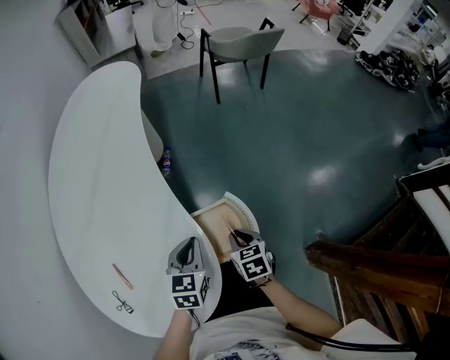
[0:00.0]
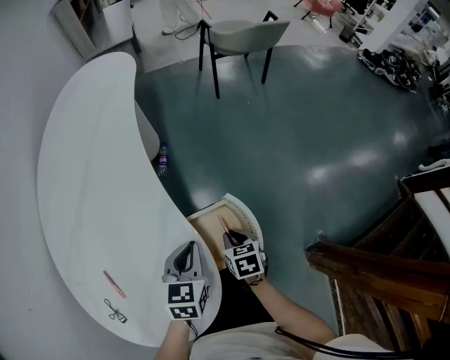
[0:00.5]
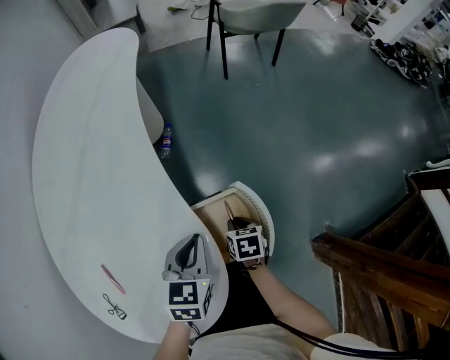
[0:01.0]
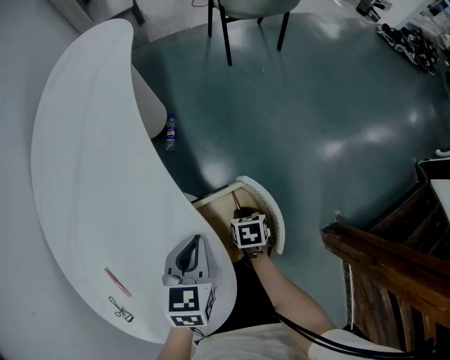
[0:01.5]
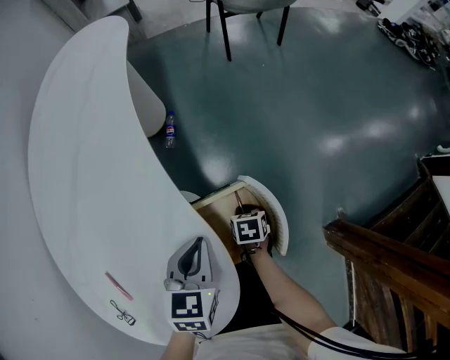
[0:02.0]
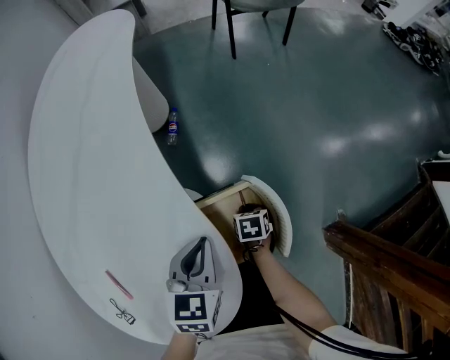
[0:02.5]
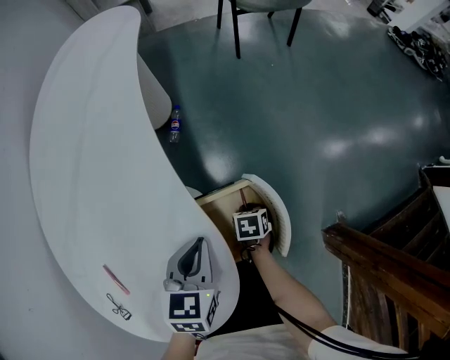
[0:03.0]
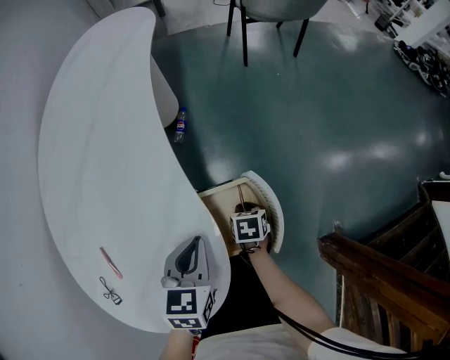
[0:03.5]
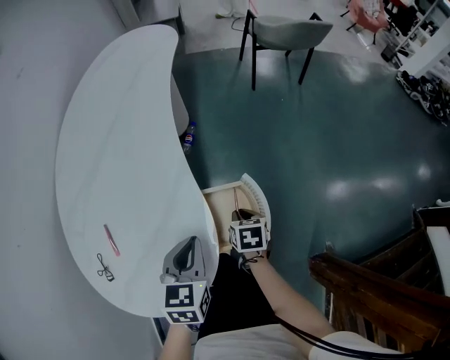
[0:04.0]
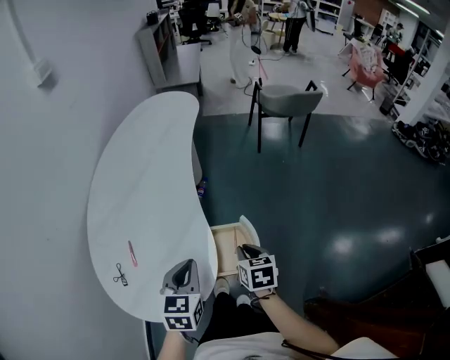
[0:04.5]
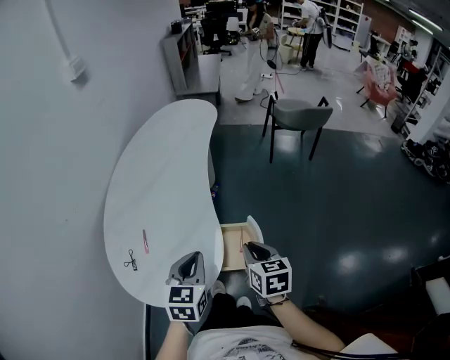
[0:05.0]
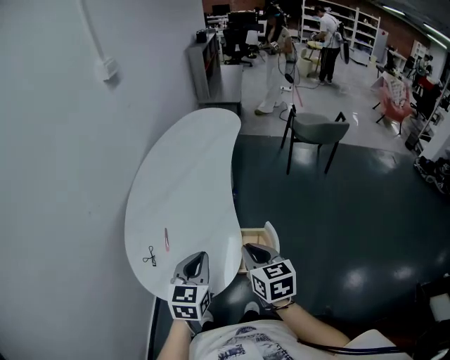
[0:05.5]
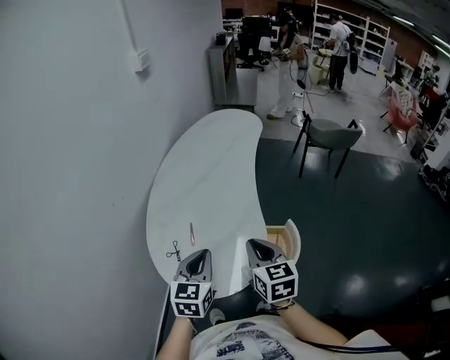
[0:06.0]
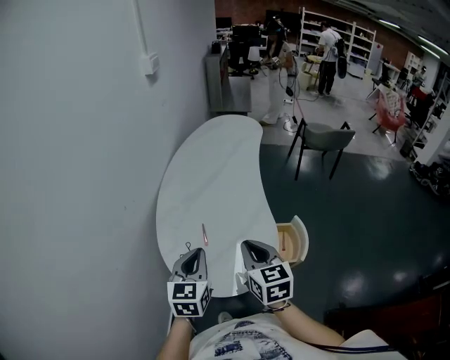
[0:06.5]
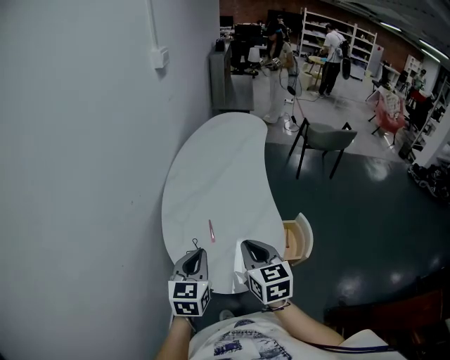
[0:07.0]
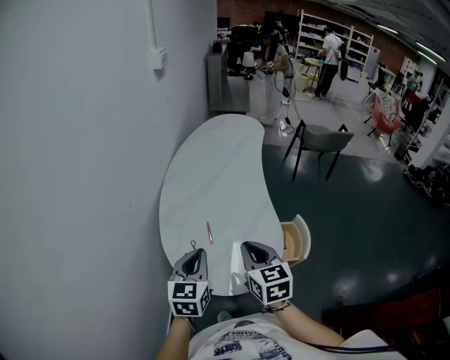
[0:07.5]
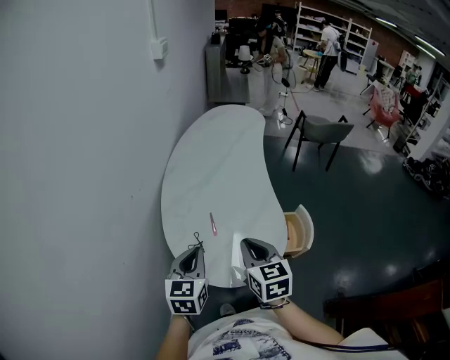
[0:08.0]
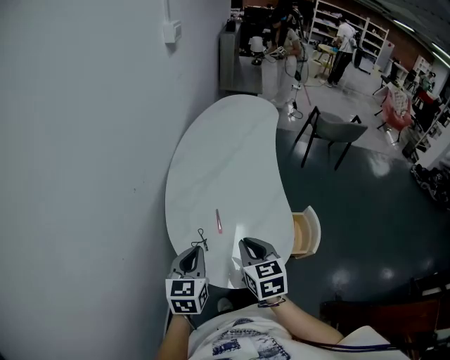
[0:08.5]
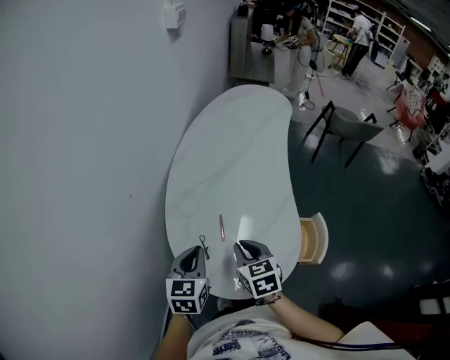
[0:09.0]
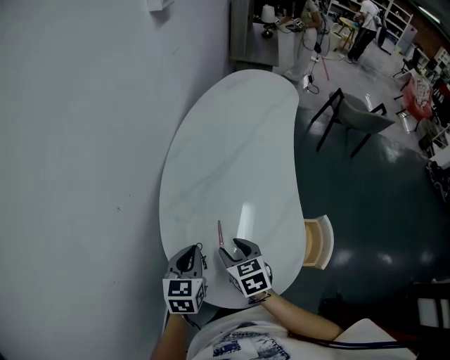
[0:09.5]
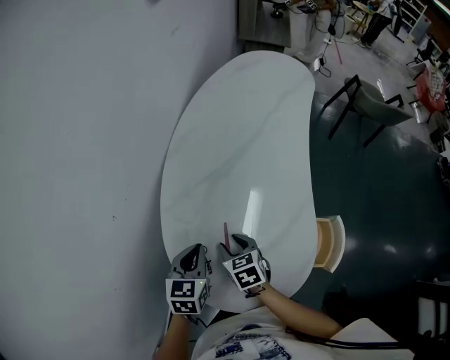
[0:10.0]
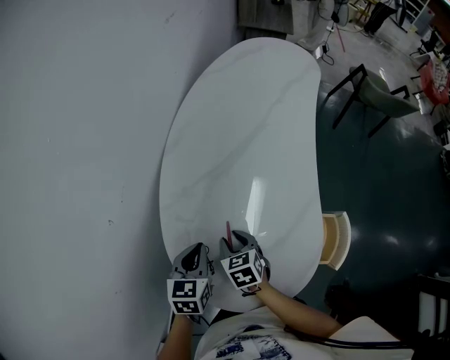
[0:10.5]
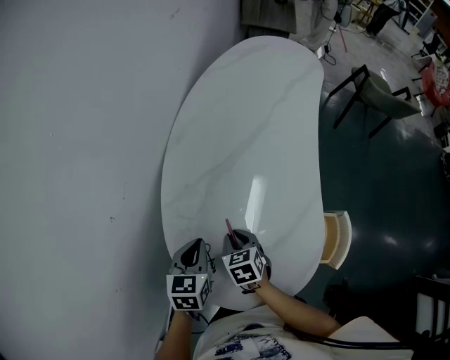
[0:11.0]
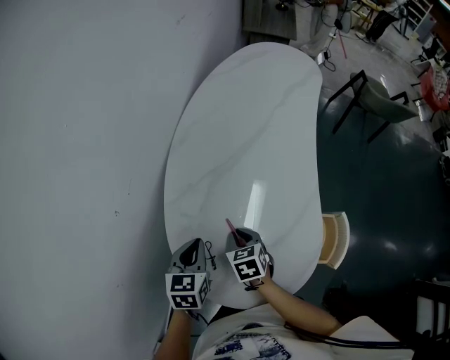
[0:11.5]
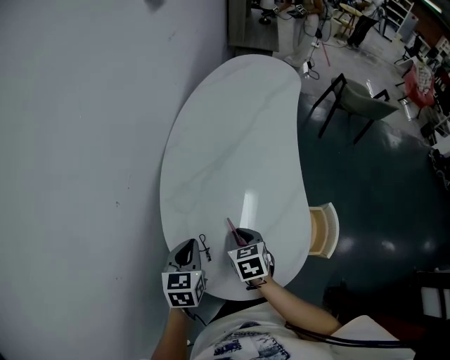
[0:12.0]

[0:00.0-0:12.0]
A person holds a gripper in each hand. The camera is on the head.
0.0 to 2.0 s: The right gripper shifts some 20 cm downward, and turns by roughly 20 degrees.
2.0 to 4.0 s: The right gripper is displaced upward by some 10 cm, while the left gripper ends up roughly 10 cm from where it was.
4.0 to 6.0 s: The right gripper is displaced upward and to the left by approximately 50 cm, and tips its fingers upward by roughly 30 degrees, while the left gripper shifts about 30 cm upward, to the left and backward.
6.0 to 8.0 s: The grippers both shift to the left by some 15 cm.
8.0 to 10.0 s: The left gripper is displaced forward and downward by about 25 cm; the right gripper heads downward and forward, covering approximately 30 cm, turns by roughly 30 degrees, and opens its fingers.
10.0 to 12.0 s: The right gripper shifts by about 5 cm, and closes.

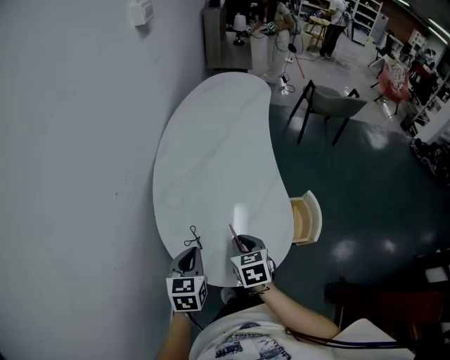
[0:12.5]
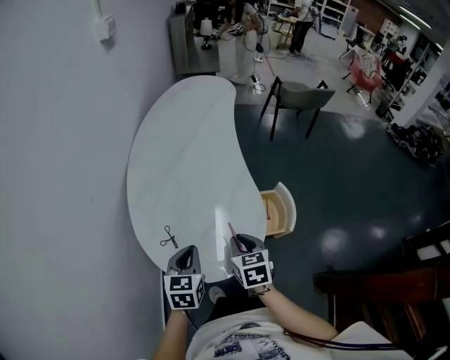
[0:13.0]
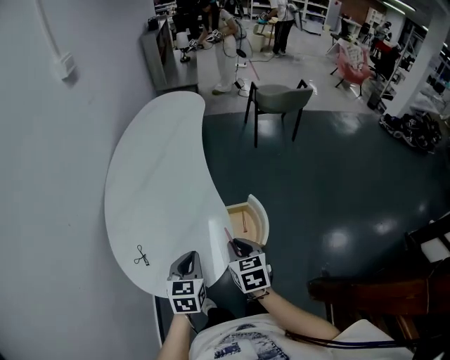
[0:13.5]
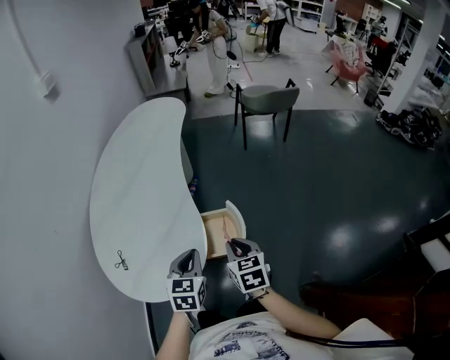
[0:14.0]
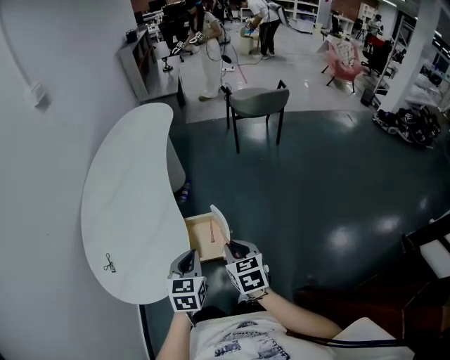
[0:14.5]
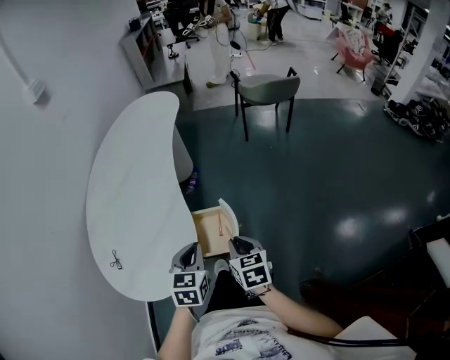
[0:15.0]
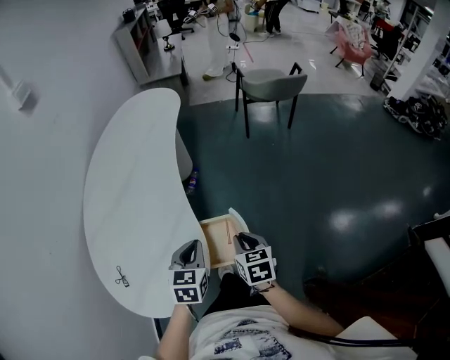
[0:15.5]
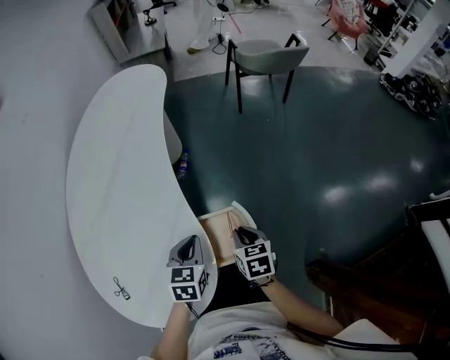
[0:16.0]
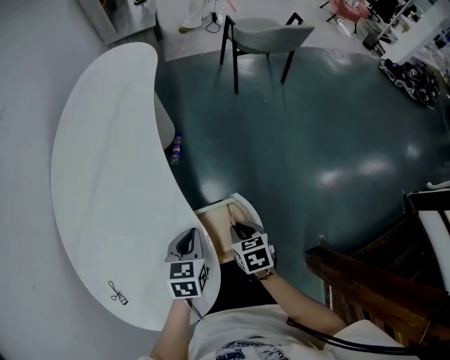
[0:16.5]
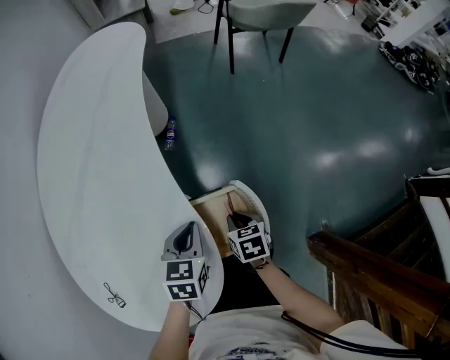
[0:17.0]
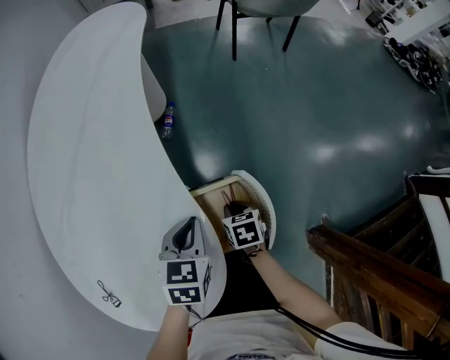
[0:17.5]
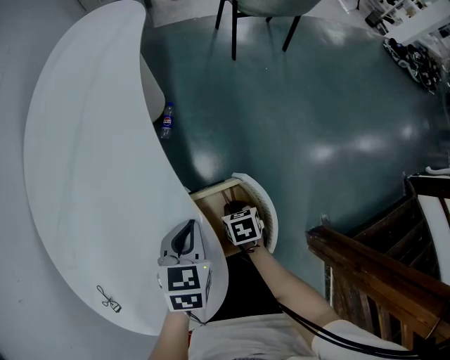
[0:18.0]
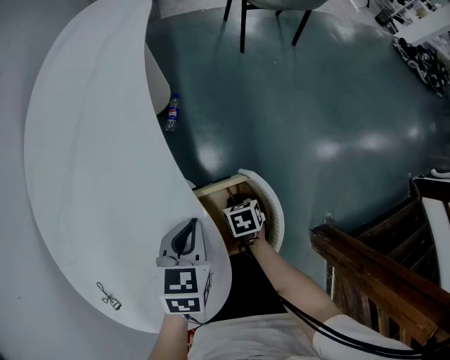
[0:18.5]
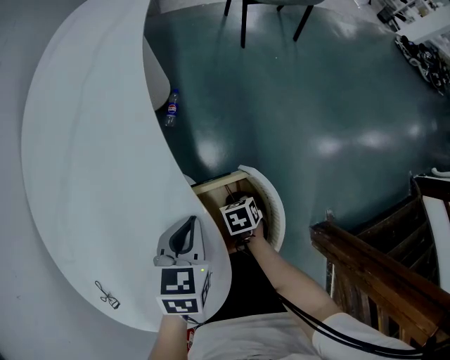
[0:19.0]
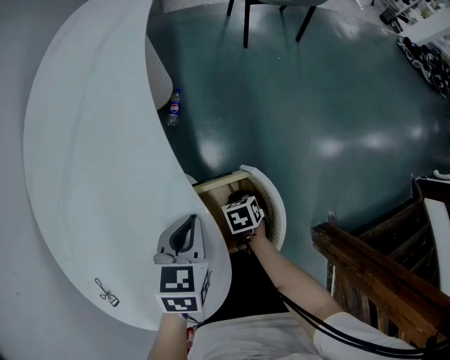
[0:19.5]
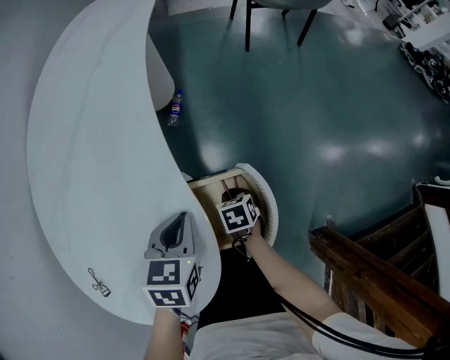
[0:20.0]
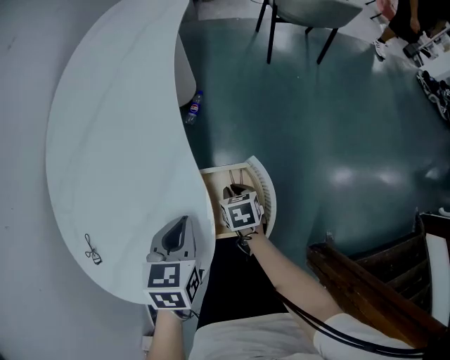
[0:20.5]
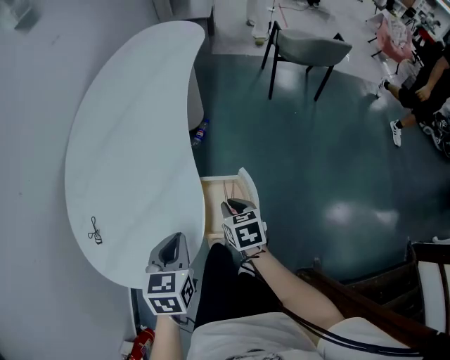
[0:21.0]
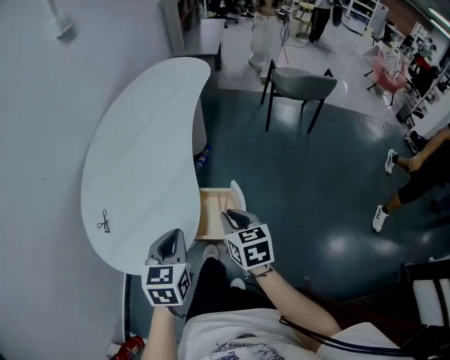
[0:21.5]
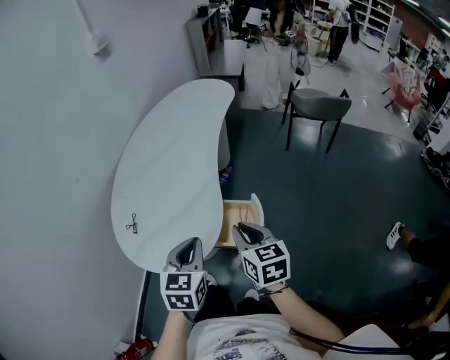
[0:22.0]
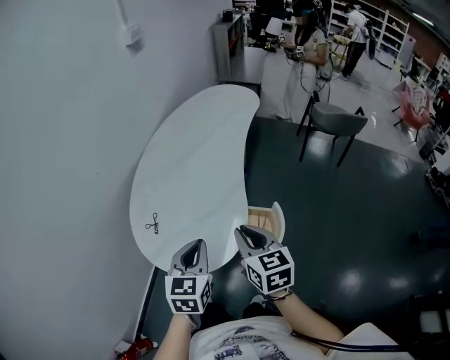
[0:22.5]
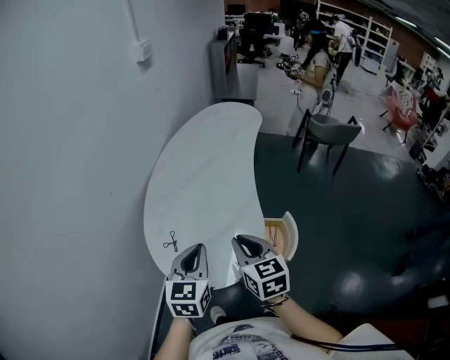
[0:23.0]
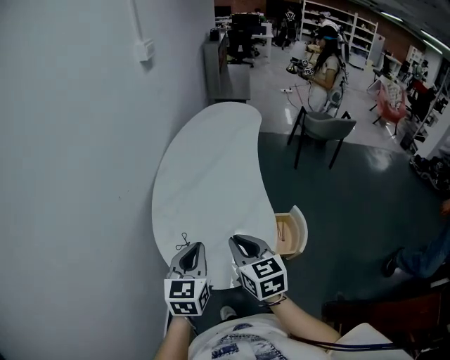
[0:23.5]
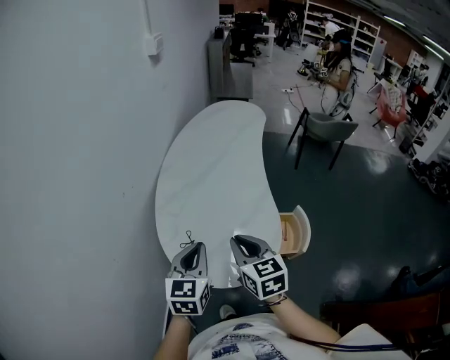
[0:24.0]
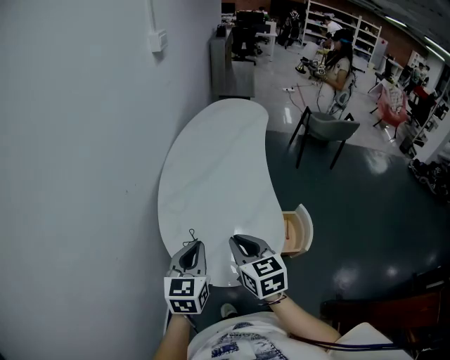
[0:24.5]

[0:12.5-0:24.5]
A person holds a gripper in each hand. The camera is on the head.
12.5 to 14.5 s: The two grippers travel together, to the right, approximately 40 cm.
14.5 to 16.5 s: The left gripper shifts roughly 25 cm forward, downward and to the left; the right gripper heads downward and forward, covering about 25 cm, and changes its angle by approximately 20 degrees.
16.5 to 18.5 s: The right gripper travels downward by about 15 cm.
18.5 to 20.5 s: The right gripper is displaced upward by about 5 cm. The left gripper is displaced backward by roughly 5 cm.
20.5 to 22.5 s: The left gripper travels upward, backward and to the left by roughly 30 cm, and changes its angle by about 30 degrees, while the right gripper travels upward by approximately 40 cm, and tilts its fingers some 30 degrees upward.
22.5 to 24.5 s: Both grippers move to the left, approximately 25 cm.

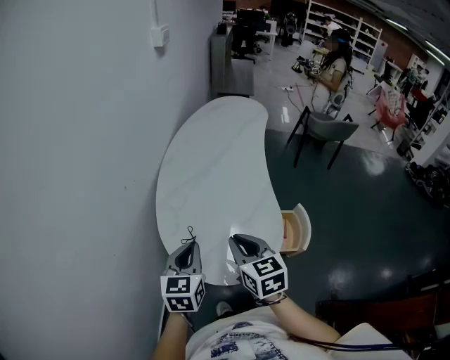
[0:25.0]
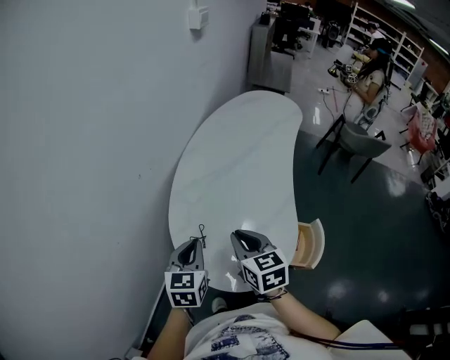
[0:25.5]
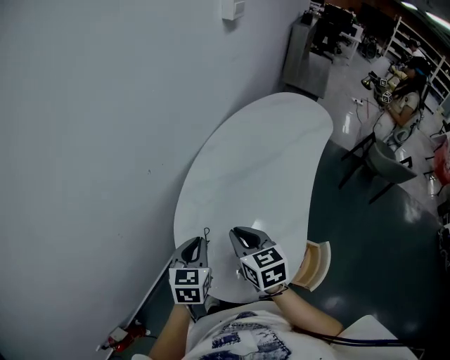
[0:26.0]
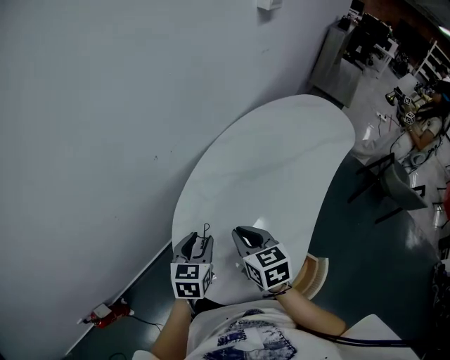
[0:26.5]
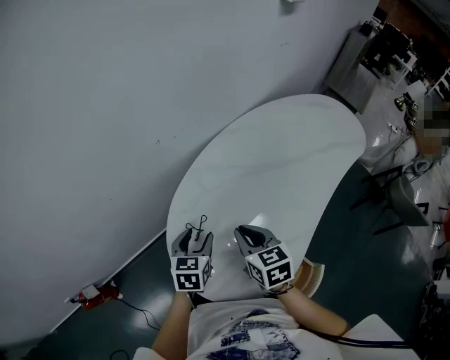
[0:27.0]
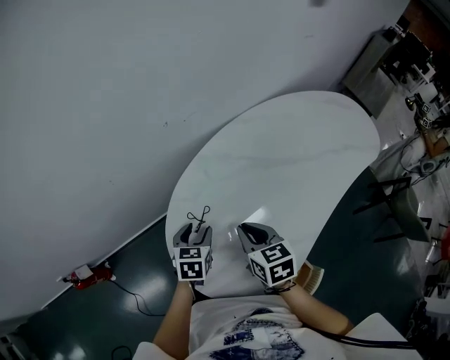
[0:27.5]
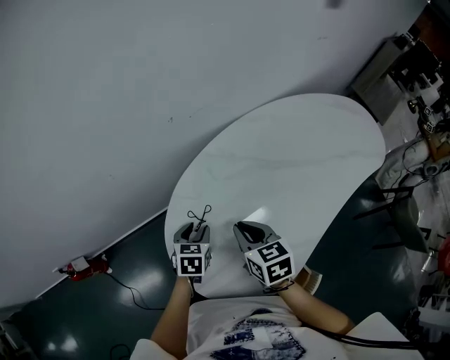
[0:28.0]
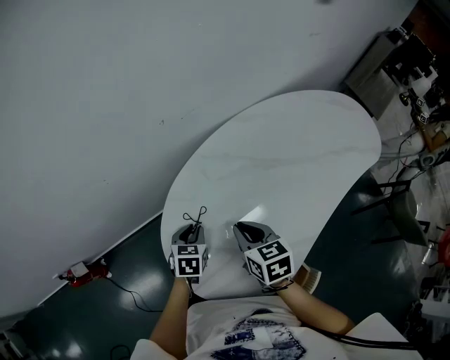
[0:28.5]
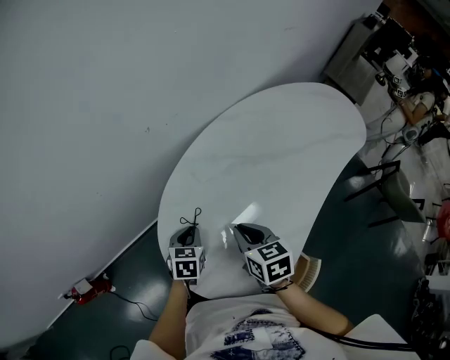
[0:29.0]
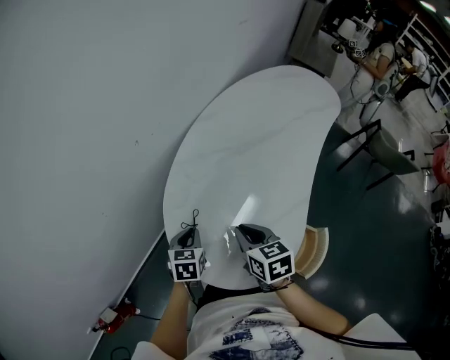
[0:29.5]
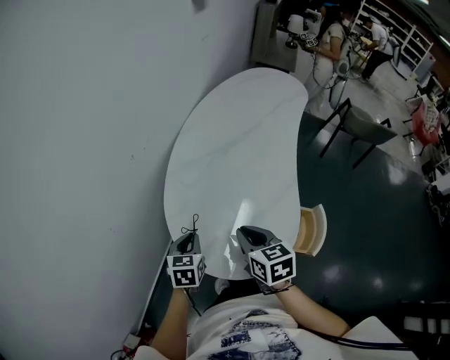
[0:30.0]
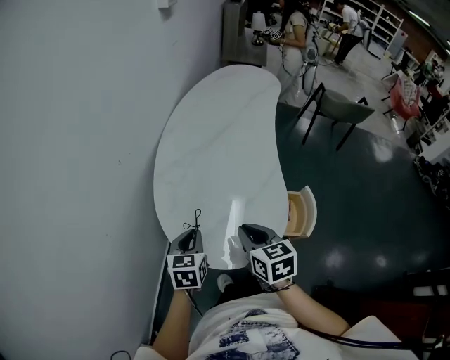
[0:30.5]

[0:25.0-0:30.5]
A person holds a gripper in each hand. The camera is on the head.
25.0 to 27.0 s: The right gripper shifts by approximately 20 cm, and changes its angle by approximately 40 degrees. Meanwhile the left gripper heads downward, covering some 15 cm, rotates about 40 degrees, and opens.
27.0 to 28.5 s: The left gripper goes roughly 10 cm downward, and closes up.
28.5 to 30.5 s: The right gripper shifts by some 20 cm, and swivels approximately 50 degrees, while the left gripper travels upward by roughly 15 cm, and rotates some 40 degrees.
